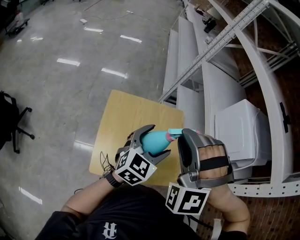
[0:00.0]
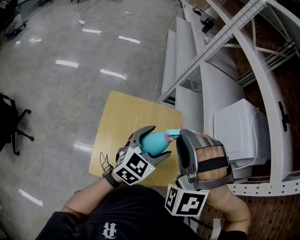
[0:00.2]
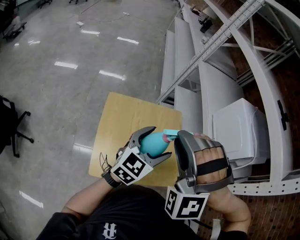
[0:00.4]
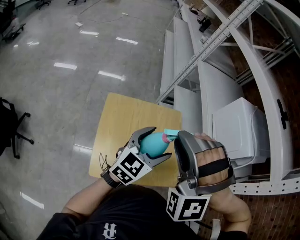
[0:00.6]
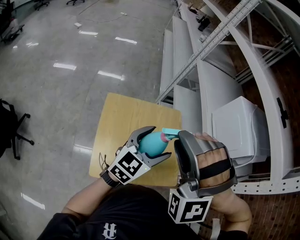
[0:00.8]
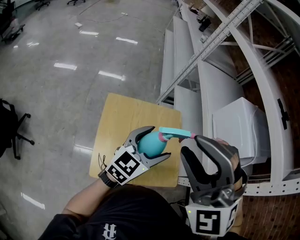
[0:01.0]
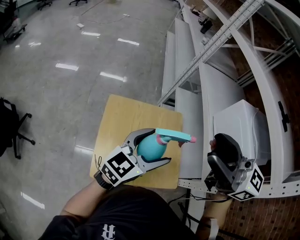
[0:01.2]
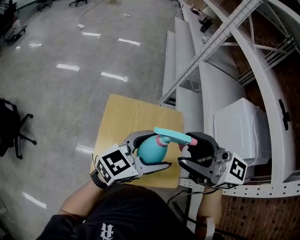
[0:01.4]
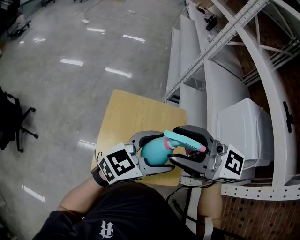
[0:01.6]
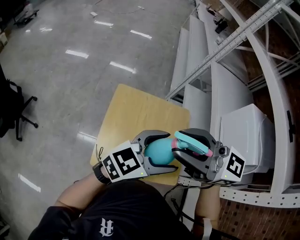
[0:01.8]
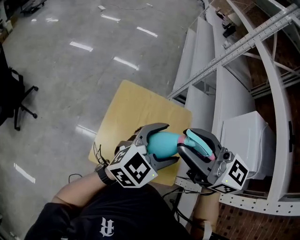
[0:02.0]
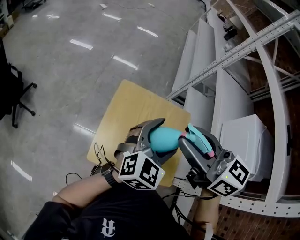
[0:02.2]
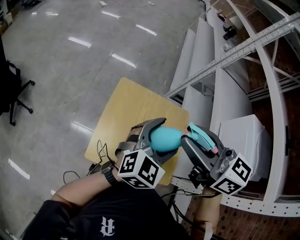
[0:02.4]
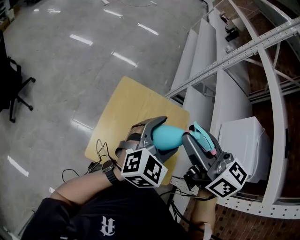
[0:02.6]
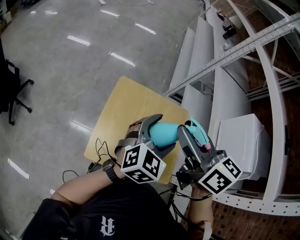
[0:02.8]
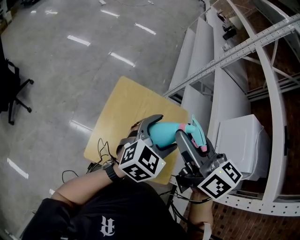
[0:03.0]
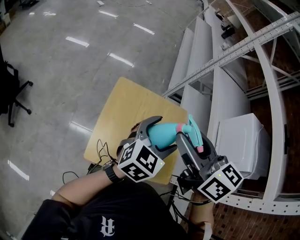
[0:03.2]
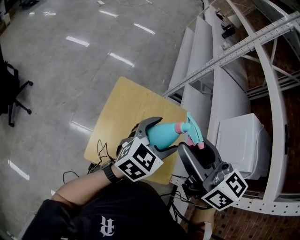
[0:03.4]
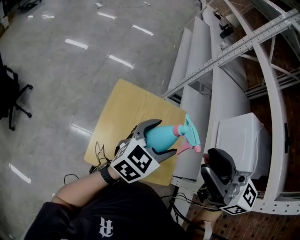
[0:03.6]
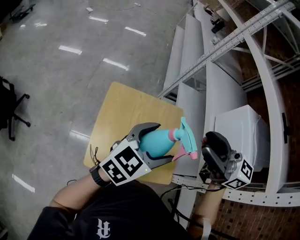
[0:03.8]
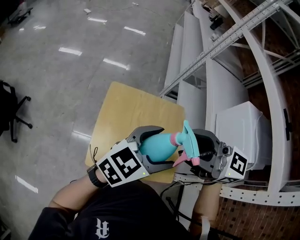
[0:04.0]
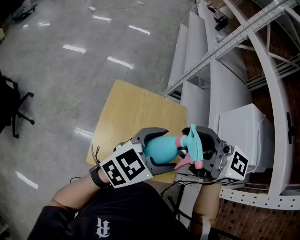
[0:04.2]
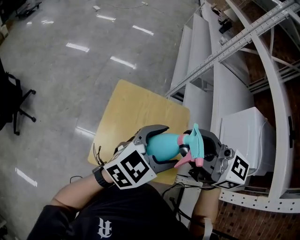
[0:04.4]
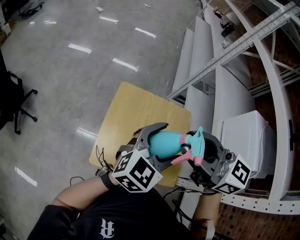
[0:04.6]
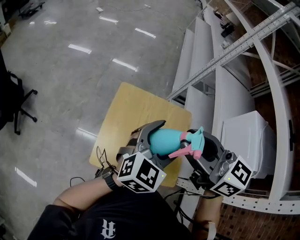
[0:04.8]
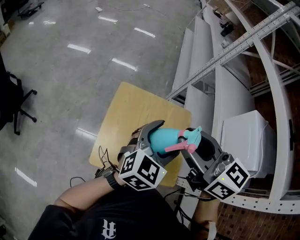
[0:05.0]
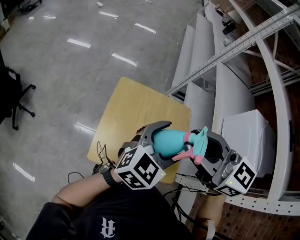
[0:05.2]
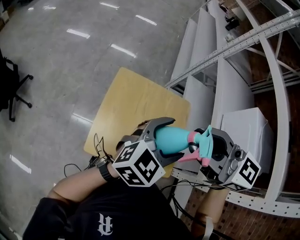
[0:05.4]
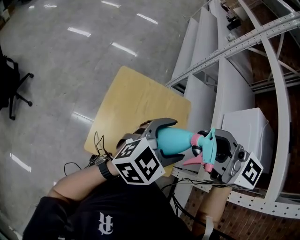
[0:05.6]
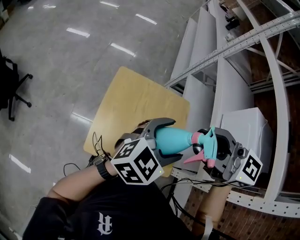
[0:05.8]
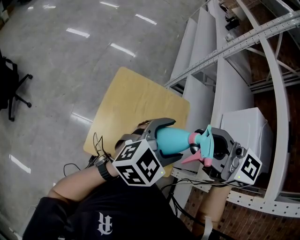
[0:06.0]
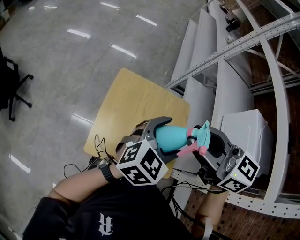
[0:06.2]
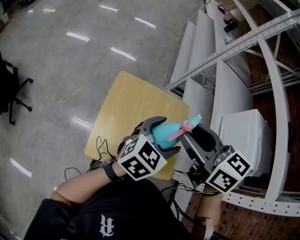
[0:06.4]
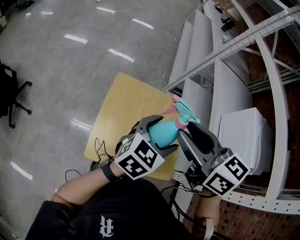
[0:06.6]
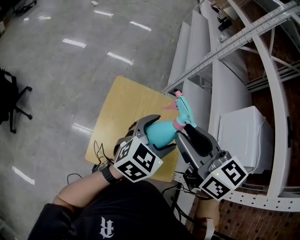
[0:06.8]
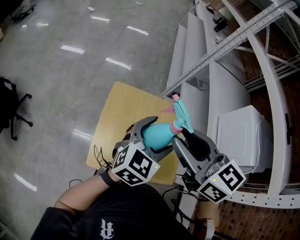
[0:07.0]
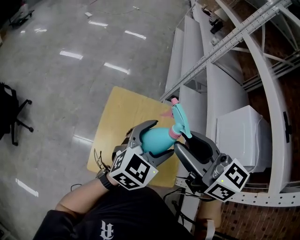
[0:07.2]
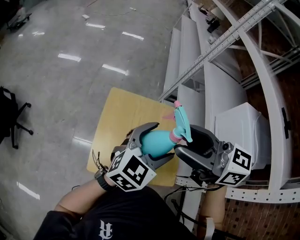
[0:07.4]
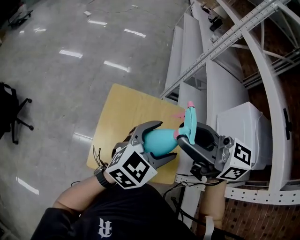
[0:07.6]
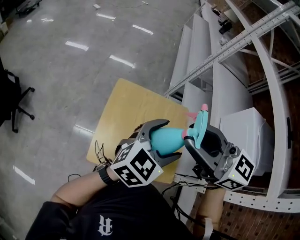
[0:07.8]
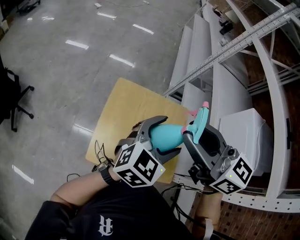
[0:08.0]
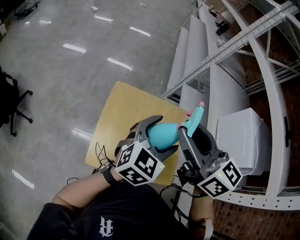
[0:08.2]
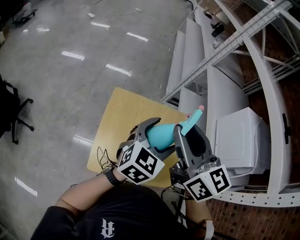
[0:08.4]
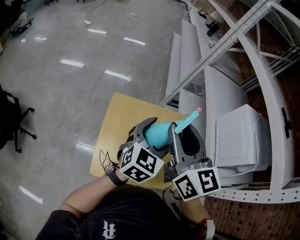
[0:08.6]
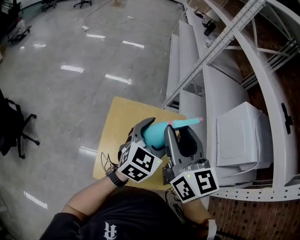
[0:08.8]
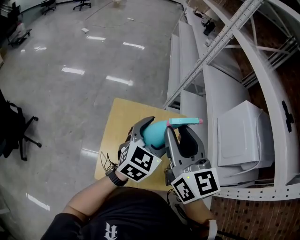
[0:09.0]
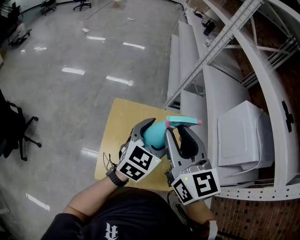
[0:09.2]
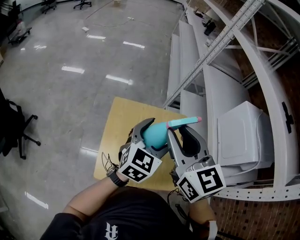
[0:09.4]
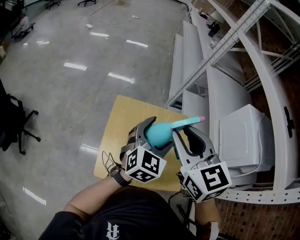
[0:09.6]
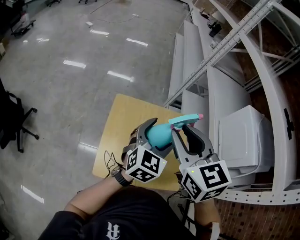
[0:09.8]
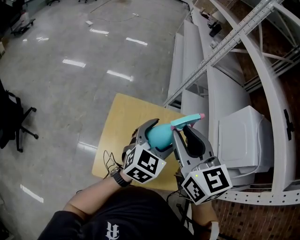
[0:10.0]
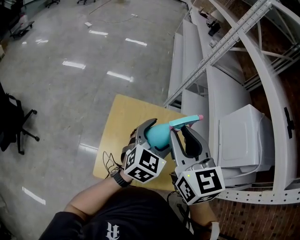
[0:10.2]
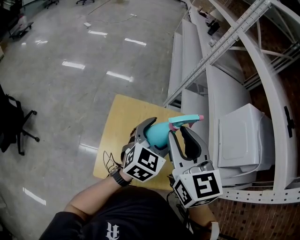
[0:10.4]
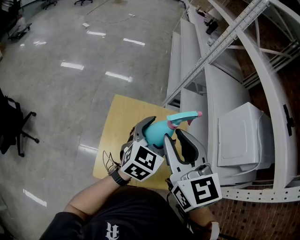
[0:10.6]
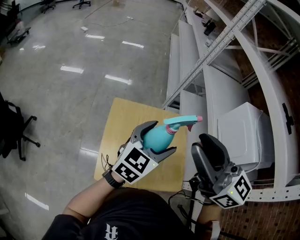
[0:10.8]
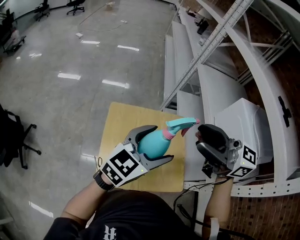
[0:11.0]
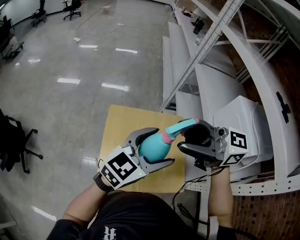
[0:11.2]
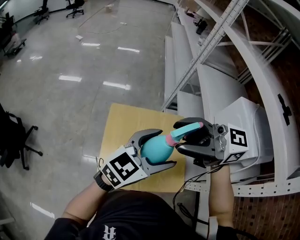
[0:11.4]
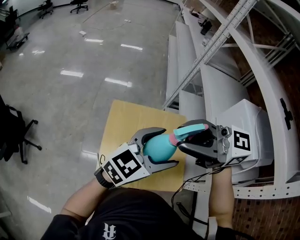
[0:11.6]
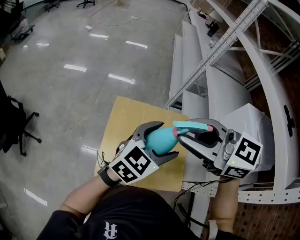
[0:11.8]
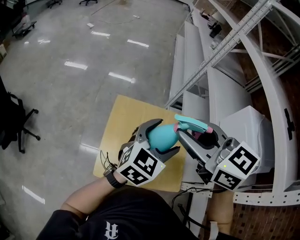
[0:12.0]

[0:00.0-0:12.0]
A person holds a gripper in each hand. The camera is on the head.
0:00.0 to 0:01.6: Both grippers move upward, some 5 cm. The right gripper changes its angle by some 110 degrees, and opens its fingers. The left gripper swivels approximately 30 degrees.
0:01.6 to 0:03.0: The right gripper heads downward, covering approximately 5 cm, and rotates roughly 40 degrees. The left gripper shifts by roughly 10 cm, and rotates approximately 30 degrees.
0:03.0 to 0:04.4: The left gripper moves approximately 5 cm. The right gripper rotates approximately 30 degrees.
0:07.6 to 0:09.0: The right gripper turns by roughly 50 degrees. The left gripper moves forward, some 5 cm.
0:10.4 to 0:12.0: The right gripper rotates some 30 degrees, and opens and closes again.

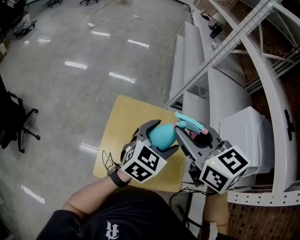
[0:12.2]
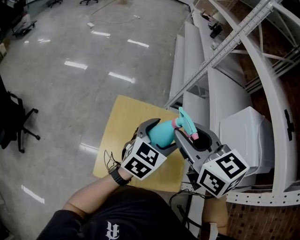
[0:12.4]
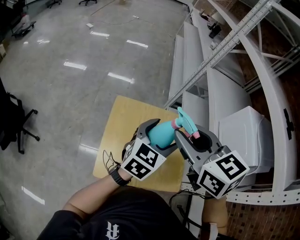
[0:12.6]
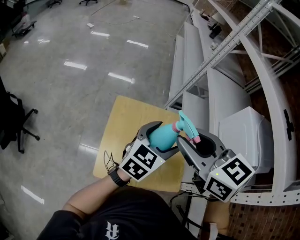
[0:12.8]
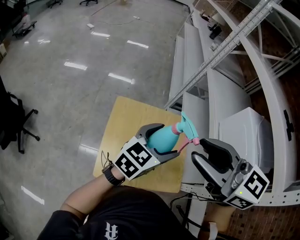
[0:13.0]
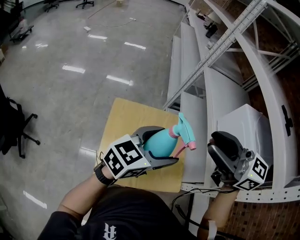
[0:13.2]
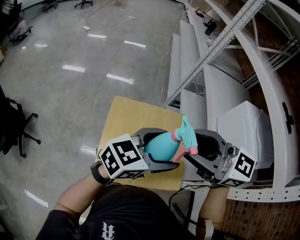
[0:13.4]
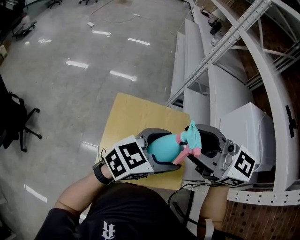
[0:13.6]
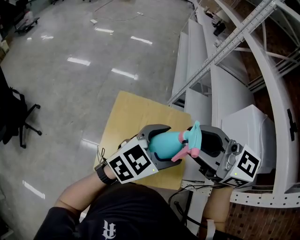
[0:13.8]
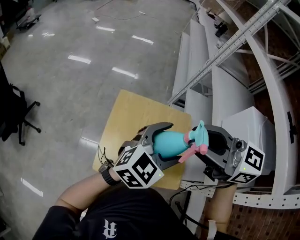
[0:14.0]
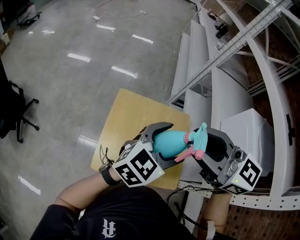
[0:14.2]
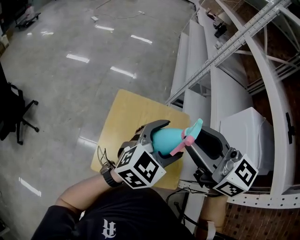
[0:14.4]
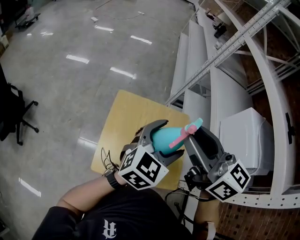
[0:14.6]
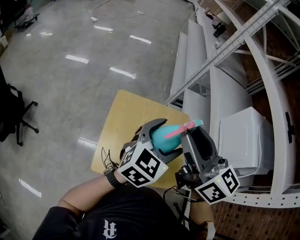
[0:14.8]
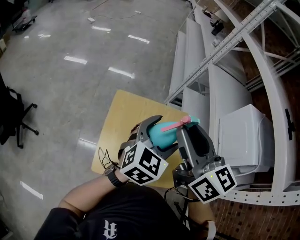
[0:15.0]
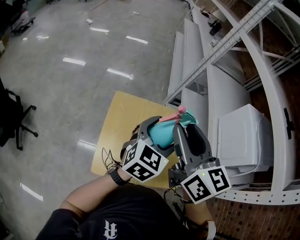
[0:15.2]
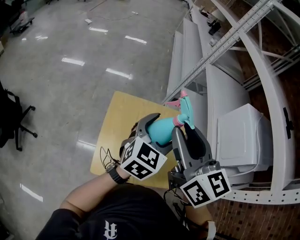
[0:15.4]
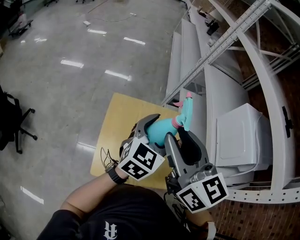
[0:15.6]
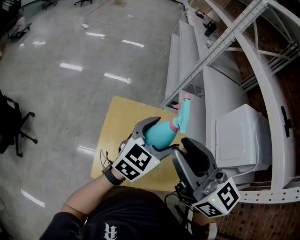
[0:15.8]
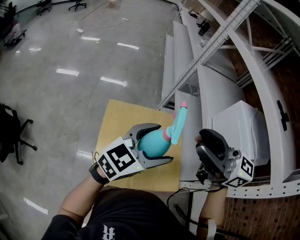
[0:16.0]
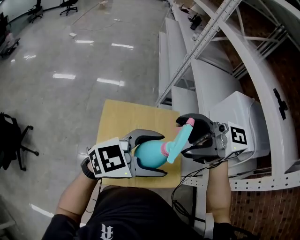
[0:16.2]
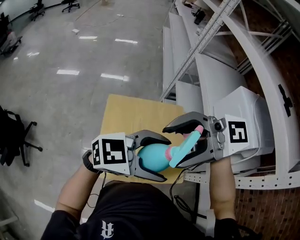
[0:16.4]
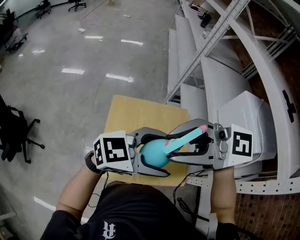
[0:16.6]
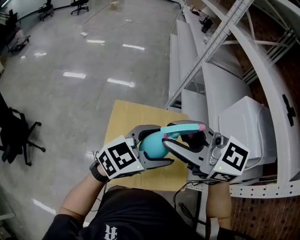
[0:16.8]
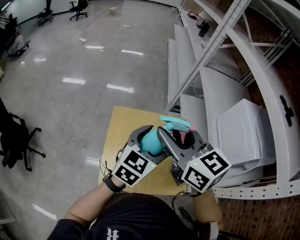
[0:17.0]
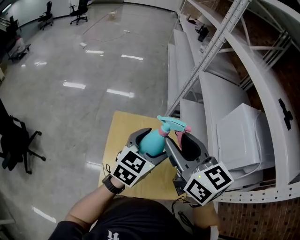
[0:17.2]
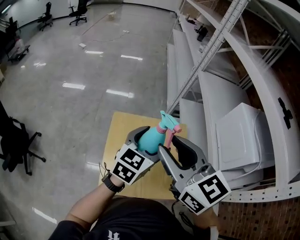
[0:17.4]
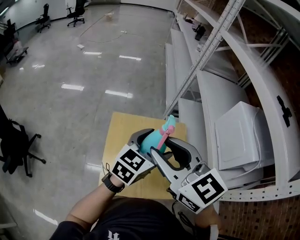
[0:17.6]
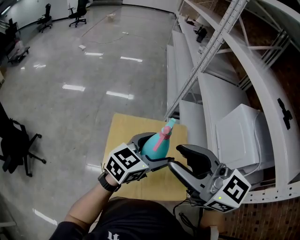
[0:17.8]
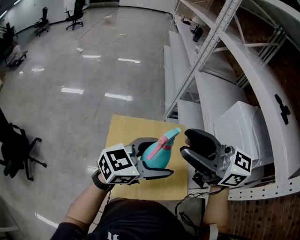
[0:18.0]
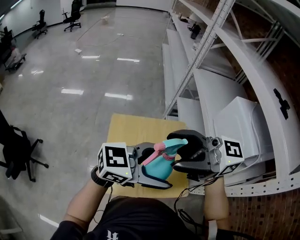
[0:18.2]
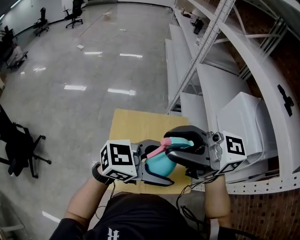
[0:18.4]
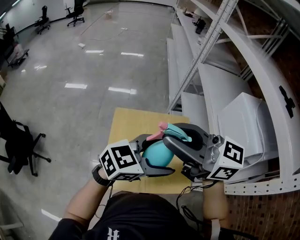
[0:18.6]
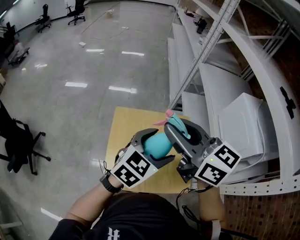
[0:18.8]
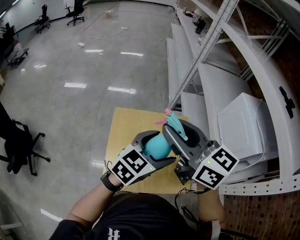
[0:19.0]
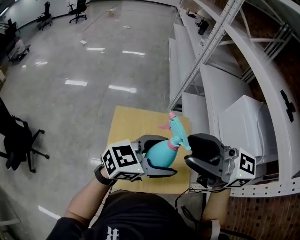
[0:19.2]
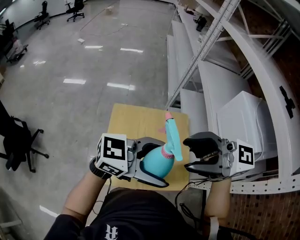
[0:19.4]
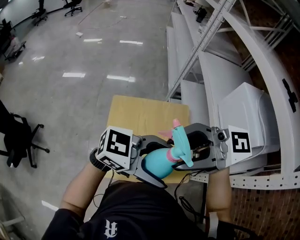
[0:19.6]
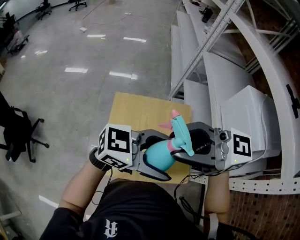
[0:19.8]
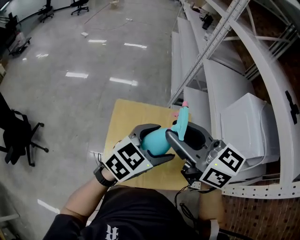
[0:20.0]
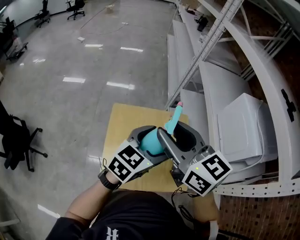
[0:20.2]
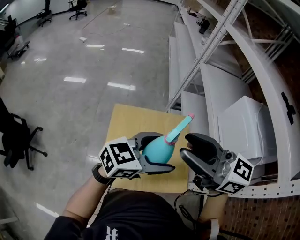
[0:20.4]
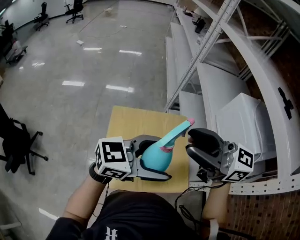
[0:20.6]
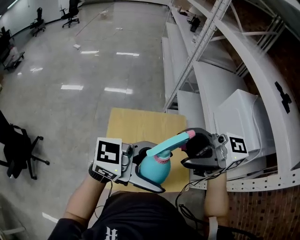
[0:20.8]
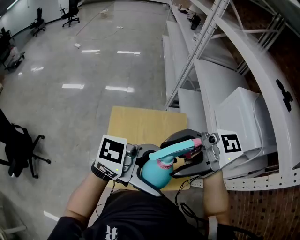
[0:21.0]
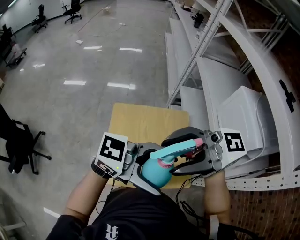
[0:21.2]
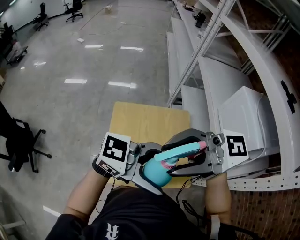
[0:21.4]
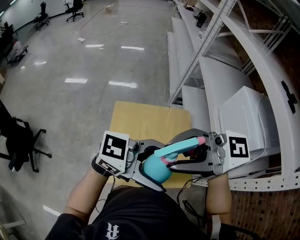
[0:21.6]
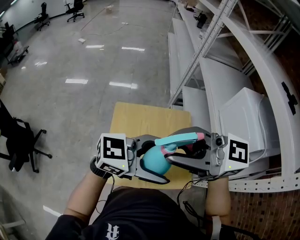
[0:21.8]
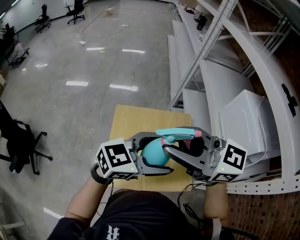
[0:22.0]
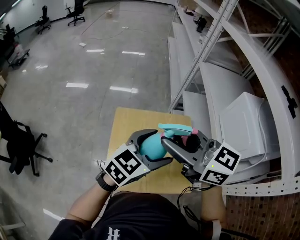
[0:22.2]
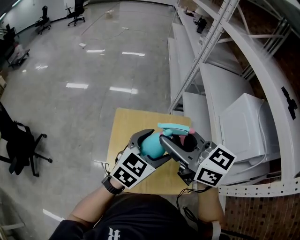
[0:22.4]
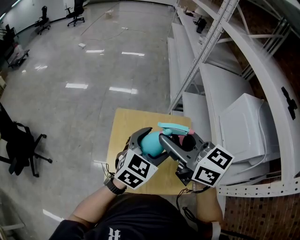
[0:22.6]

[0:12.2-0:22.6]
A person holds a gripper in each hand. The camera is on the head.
0:12.2 to 0:13.6: The left gripper shifts by approximately 10 cm, and swivels roughly 30 degrees. The right gripper rotates roughly 30 degrees.
0:13.6 to 0:15.2: The left gripper ends up about 10 cm from where it was, and changes its angle by some 30 degrees. The right gripper shifts by approximately 5 cm, and rotates roughly 40 degrees.
0:15.2 to 0:16.6: The left gripper changes place by about 10 cm, and changes its angle by roughly 50 degrees, while the right gripper shifts by roughly 10 cm, rotates roughly 70 degrees, and opens, then closes again.
0:16.6 to 0:18.2: The right gripper rotates roughly 20 degrees, and opens up.
0:18.2 to 0:19.6: The right gripper closes and opens again.
0:19.6 to 0:21.2: The left gripper goes downward and returns, approximately 5 cm each way.
0:21.2 to 0:22.6: The left gripper shifts by some 20 cm, and tilts its fingers roughly 30 degrees downward, while the right gripper ends up approximately 15 cm from where it was, changes its angle by roughly 50 degrees, and closes up.

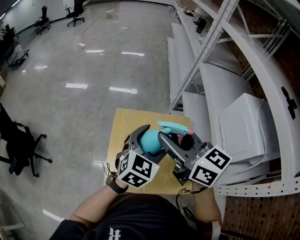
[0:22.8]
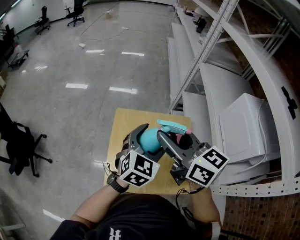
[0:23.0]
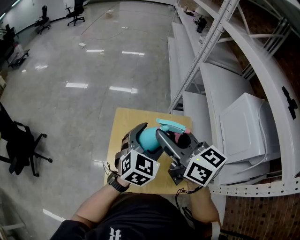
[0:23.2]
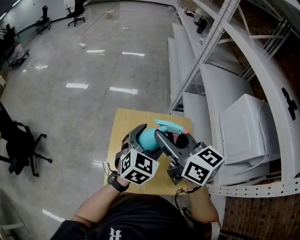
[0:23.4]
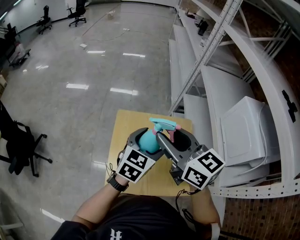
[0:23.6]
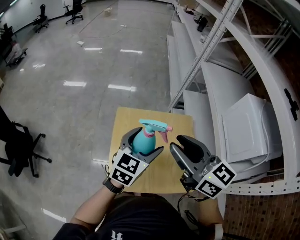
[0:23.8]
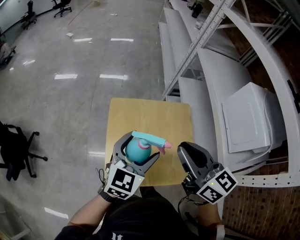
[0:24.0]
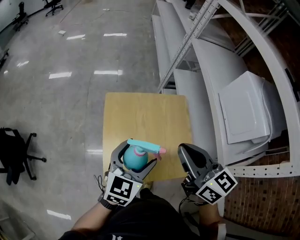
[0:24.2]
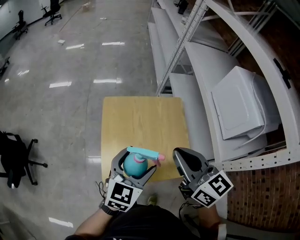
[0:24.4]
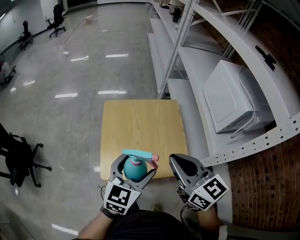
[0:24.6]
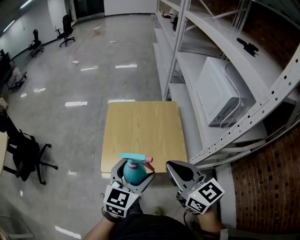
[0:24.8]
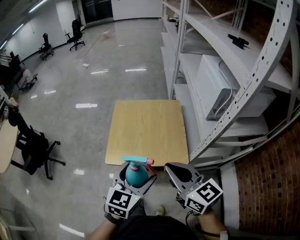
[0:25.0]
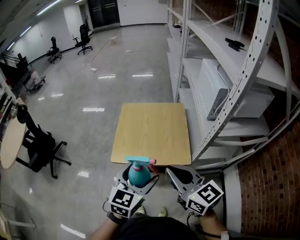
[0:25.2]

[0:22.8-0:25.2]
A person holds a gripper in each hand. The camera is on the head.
0:22.8 to 0:24.0: The left gripper moves to the left, approximately 5 cm. The right gripper is displaced downward by about 5 cm.
0:24.0 to 0:25.2: The two grippers travel together, backward, some 40 cm.
